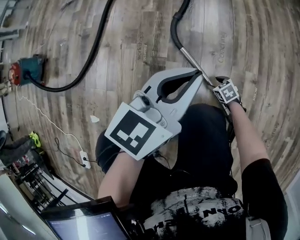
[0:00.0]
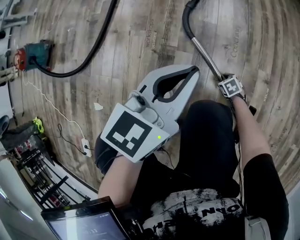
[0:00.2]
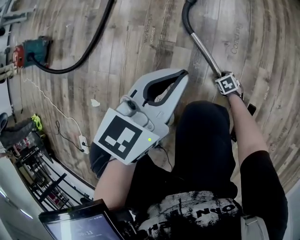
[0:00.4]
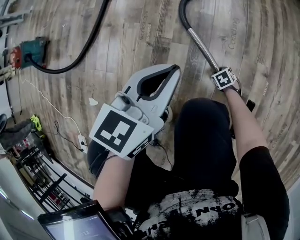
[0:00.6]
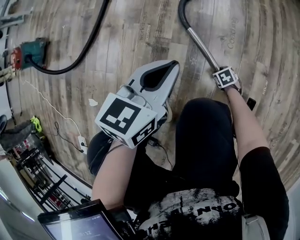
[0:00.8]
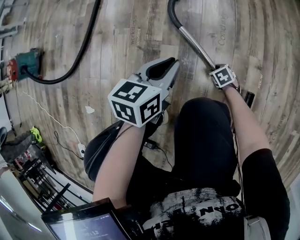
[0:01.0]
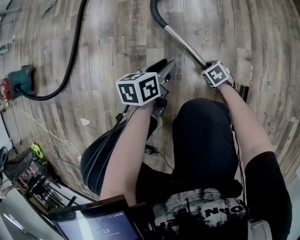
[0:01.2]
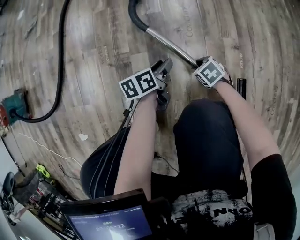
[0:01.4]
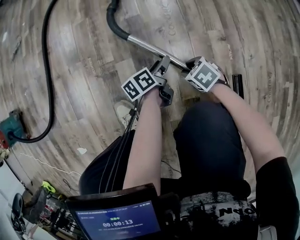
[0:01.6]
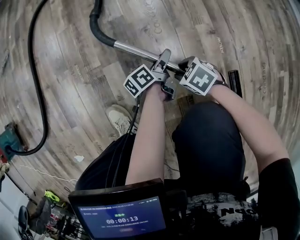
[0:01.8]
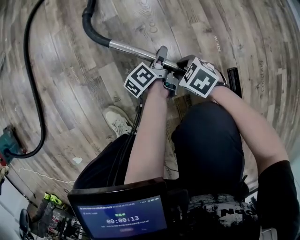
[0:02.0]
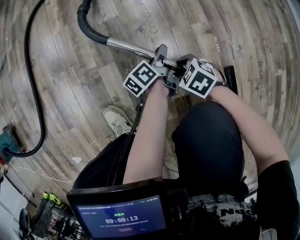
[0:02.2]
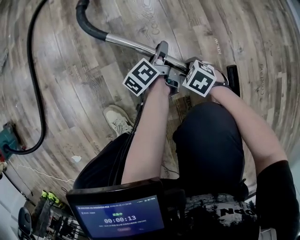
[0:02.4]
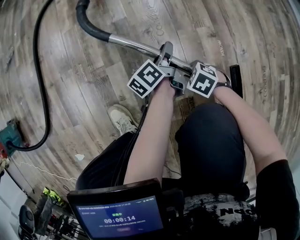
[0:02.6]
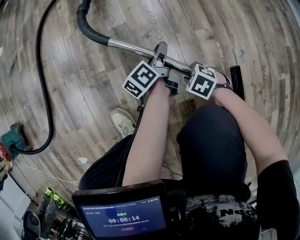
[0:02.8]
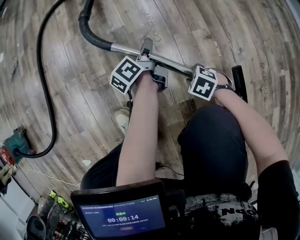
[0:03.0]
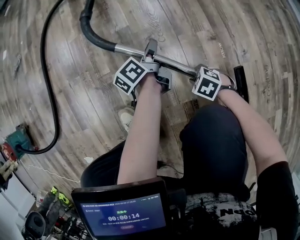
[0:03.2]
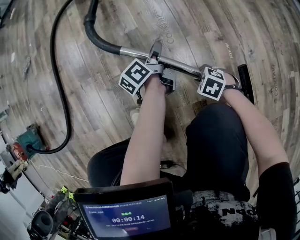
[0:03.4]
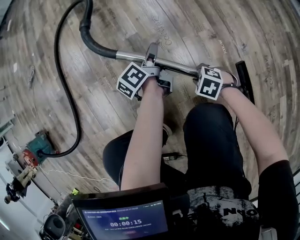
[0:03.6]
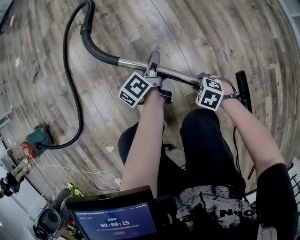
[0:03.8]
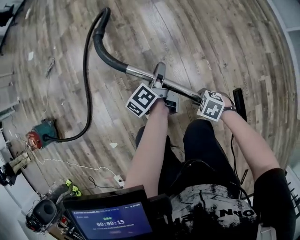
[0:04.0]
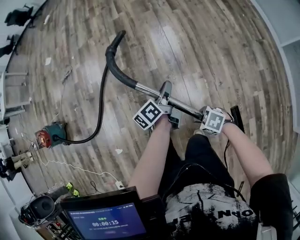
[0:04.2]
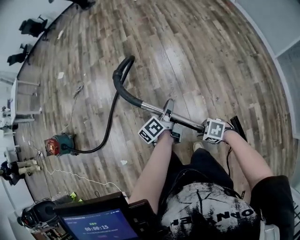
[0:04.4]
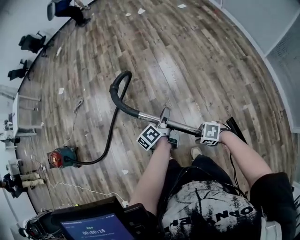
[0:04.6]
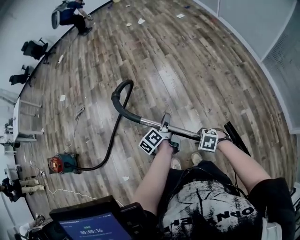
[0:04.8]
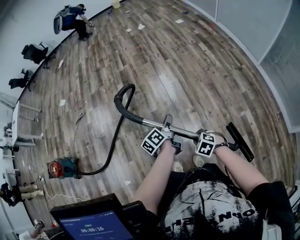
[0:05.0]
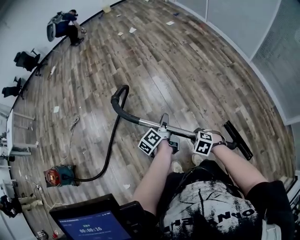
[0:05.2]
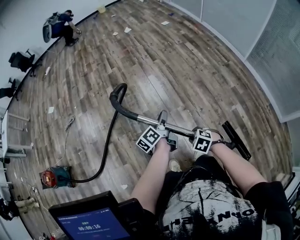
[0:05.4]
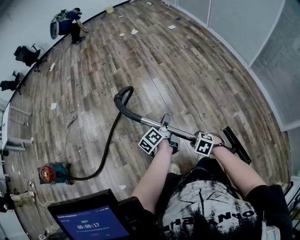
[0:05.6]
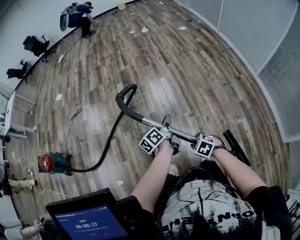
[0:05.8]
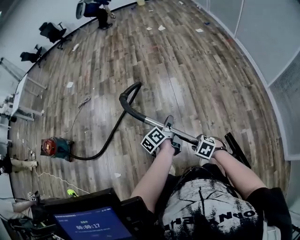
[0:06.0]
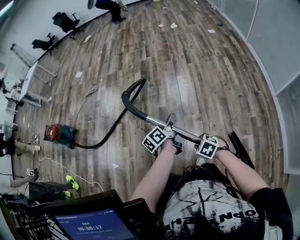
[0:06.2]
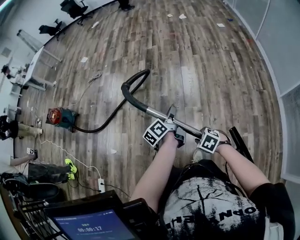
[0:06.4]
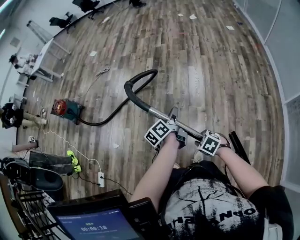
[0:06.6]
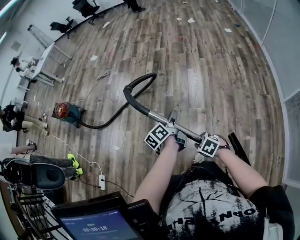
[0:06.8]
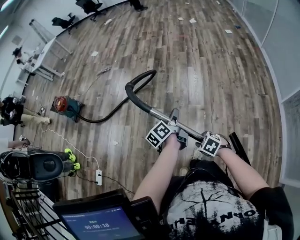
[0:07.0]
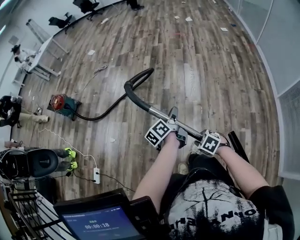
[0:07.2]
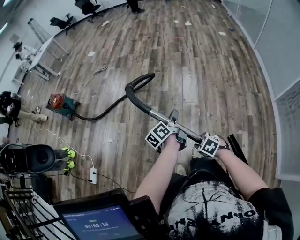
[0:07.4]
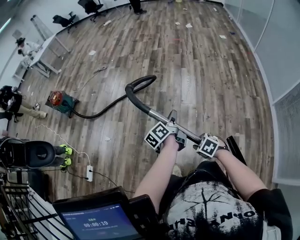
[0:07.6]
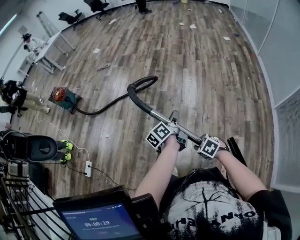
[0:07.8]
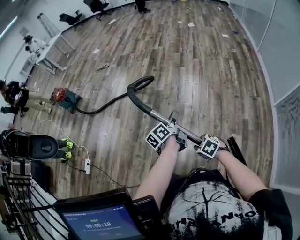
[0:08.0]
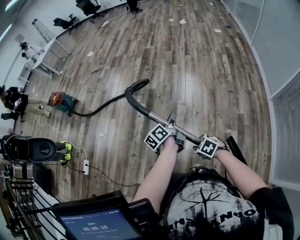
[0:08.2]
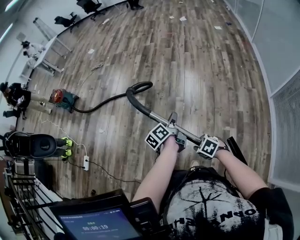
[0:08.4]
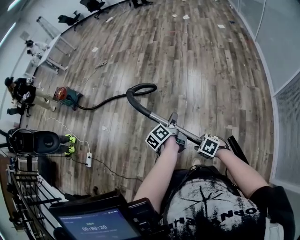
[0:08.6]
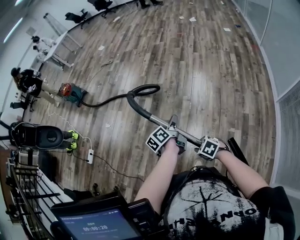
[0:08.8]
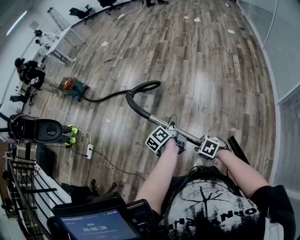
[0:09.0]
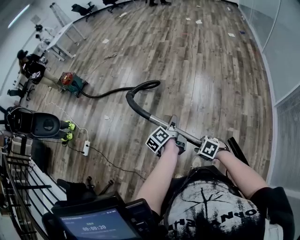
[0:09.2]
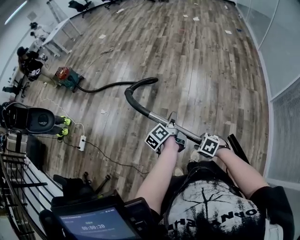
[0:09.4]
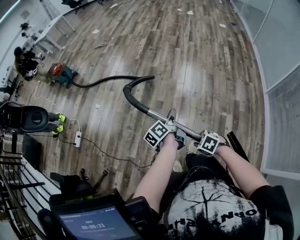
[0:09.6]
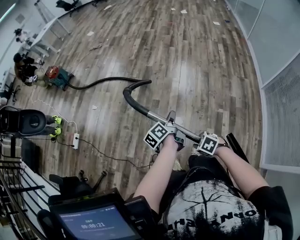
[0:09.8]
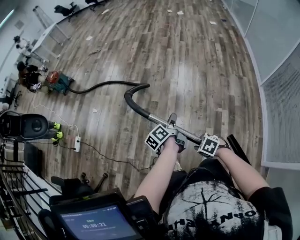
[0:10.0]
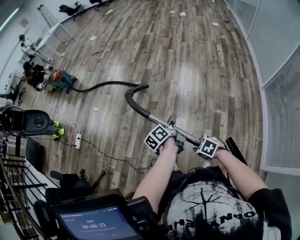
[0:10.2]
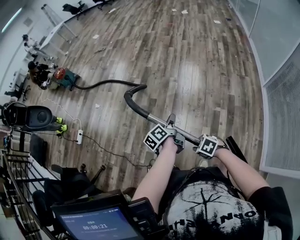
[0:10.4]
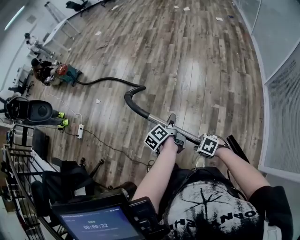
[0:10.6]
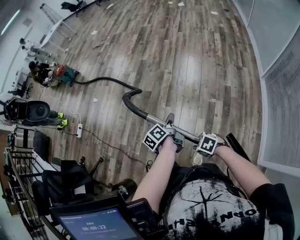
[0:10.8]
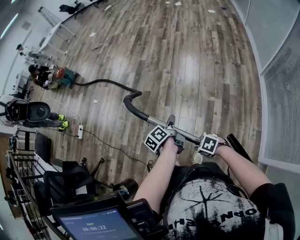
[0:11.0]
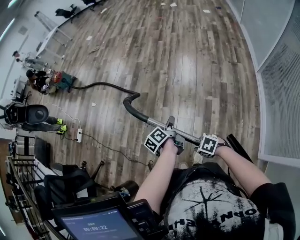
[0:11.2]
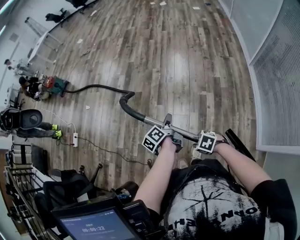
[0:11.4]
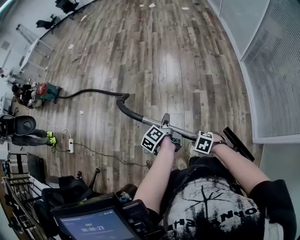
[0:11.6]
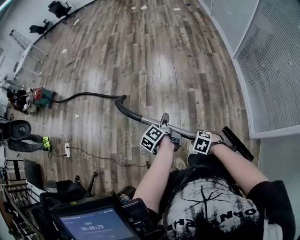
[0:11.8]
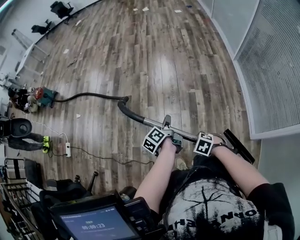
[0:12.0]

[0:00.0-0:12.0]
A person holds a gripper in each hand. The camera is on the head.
0:00.0 to 0:01.6: The left gripper goes approximately 40 cm downward, twists approximately 60 degrees counterclockwise, seen from behind, and opens up. Meanwhile the right gripper goes downward and returns, some 10 cm each way.
0:01.6 to 0:03.0: The left gripper changes place by roughly 10 cm, and closes its fingers. The right gripper shifts by roughly 5 cm.
0:03.0 to 0:04.4: Both grippers travel together upward, about 60 cm. The right gripper swivels roughly 20 degrees.
0:04.4 to 0:06.0: The right gripper travels upward by approximately 5 cm, and rotates approximately 20 degrees. The left gripper moves approximately 10 cm.
0:06.0 to 0:07.6: The two grippers go approximately 25 cm backward.
0:07.6 to 0:09.0: The left gripper shifts some 20 cm backward, while the right gripper shifts approximately 25 cm backward and to the right.
0:09.0 to 0:10.4: Both grippers travel together backward, approximately 25 cm.
0:10.4 to 0:12.0: The right gripper changes place by roughly 20 cm. Meanwhile the left gripper moves roughly 20 cm.

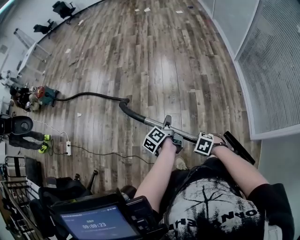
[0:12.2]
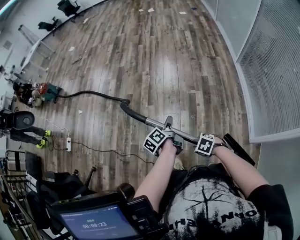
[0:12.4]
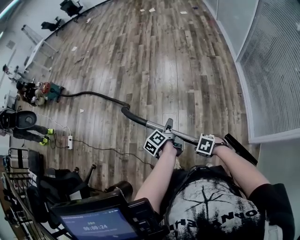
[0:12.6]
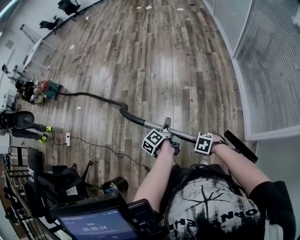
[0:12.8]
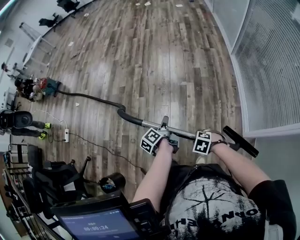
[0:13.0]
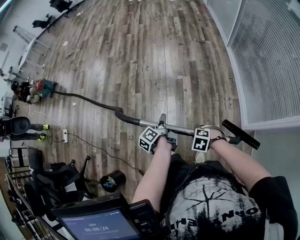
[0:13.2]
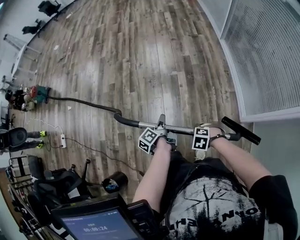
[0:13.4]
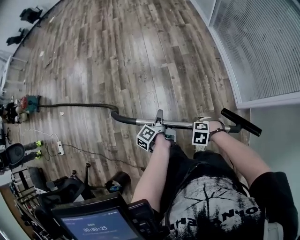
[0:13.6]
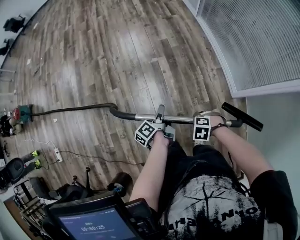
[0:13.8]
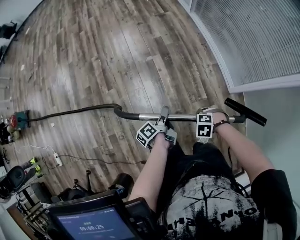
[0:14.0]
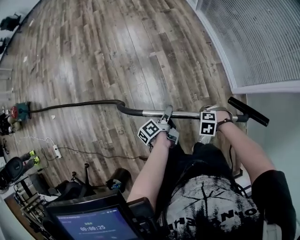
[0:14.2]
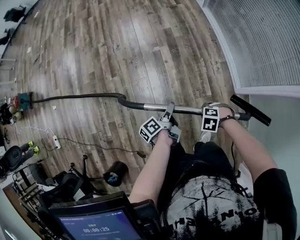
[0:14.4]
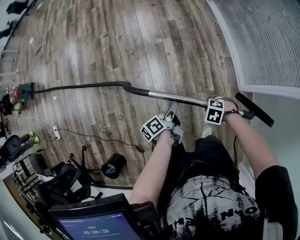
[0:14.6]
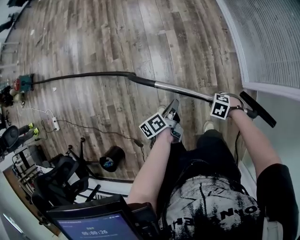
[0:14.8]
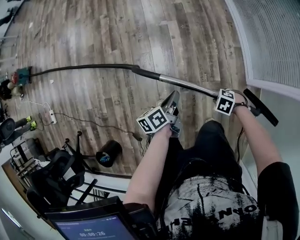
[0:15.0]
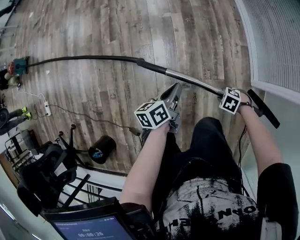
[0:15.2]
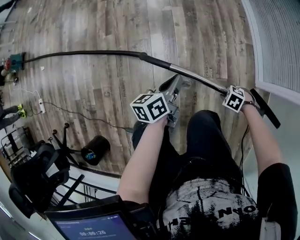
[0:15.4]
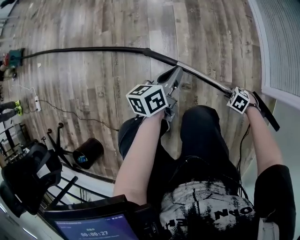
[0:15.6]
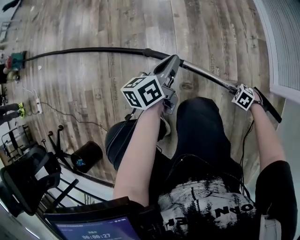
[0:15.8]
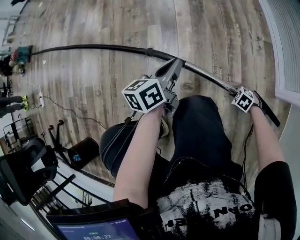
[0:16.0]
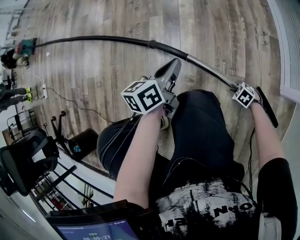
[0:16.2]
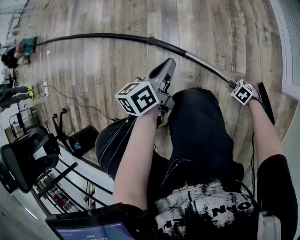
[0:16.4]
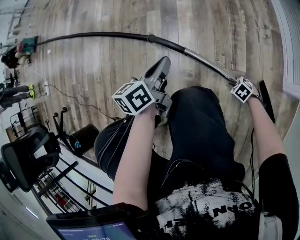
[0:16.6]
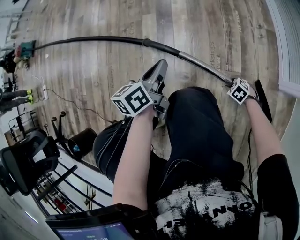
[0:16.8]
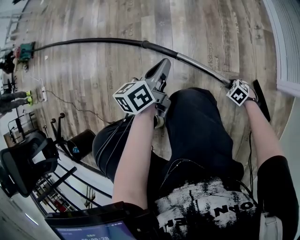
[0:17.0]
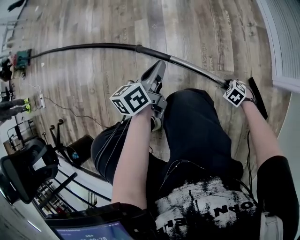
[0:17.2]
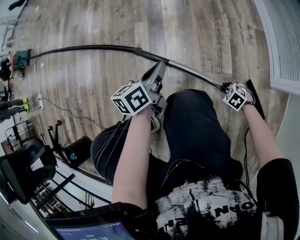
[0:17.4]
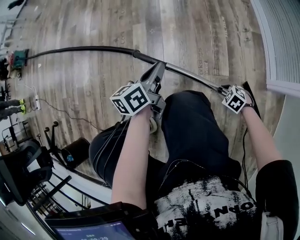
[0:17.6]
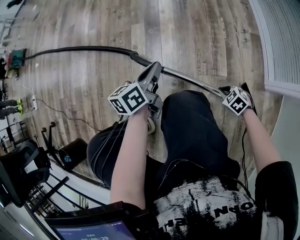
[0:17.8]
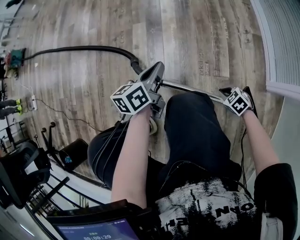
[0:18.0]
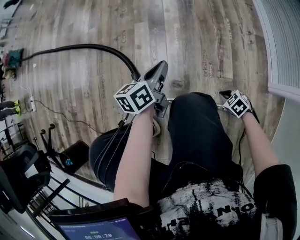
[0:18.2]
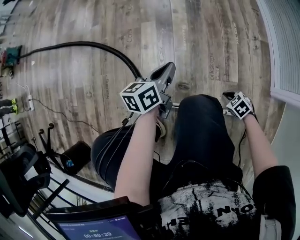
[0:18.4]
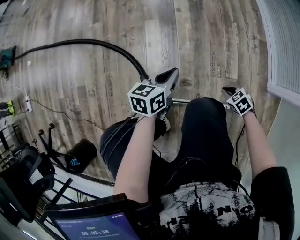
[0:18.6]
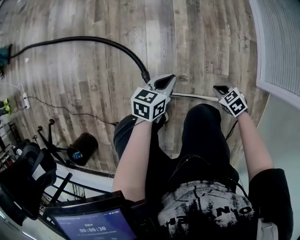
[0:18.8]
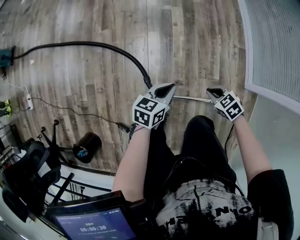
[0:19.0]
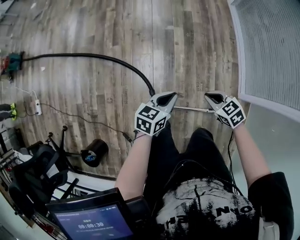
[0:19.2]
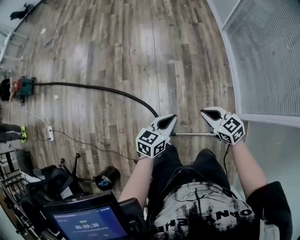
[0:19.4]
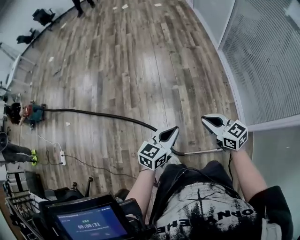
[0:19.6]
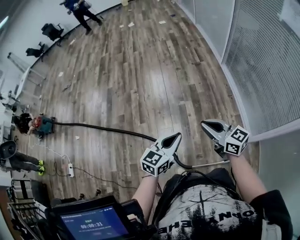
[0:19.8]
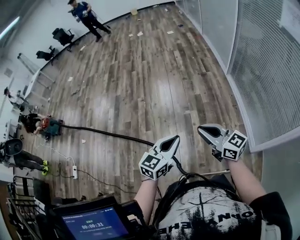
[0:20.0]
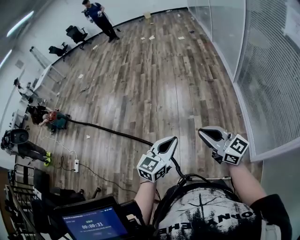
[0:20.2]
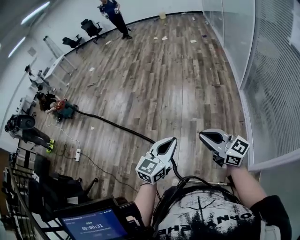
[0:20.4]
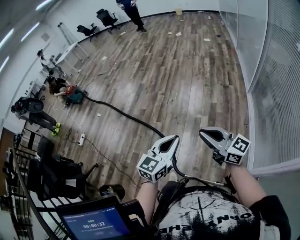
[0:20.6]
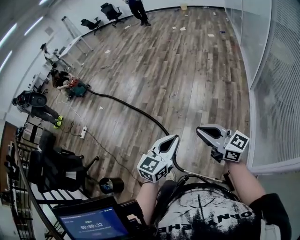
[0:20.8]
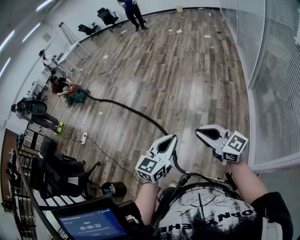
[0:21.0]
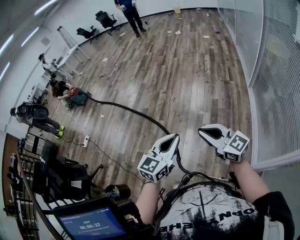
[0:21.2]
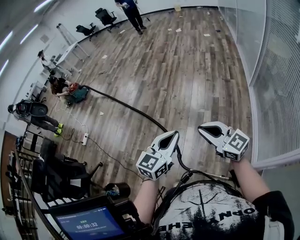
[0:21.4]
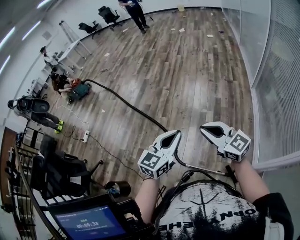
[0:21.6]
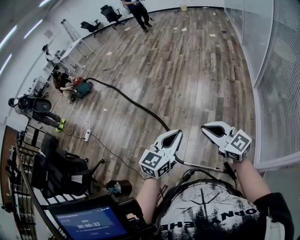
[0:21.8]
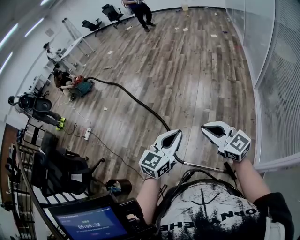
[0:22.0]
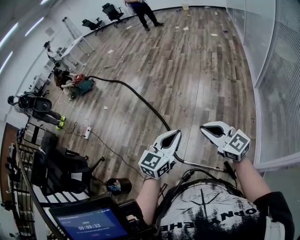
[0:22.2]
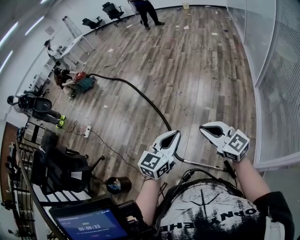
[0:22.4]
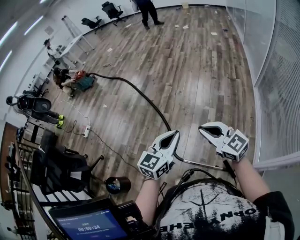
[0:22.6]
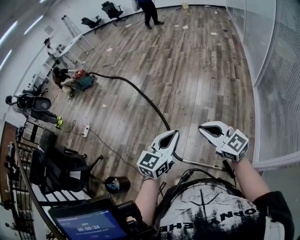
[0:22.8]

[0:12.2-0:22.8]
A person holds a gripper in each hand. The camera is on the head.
0:12.2 to 0:13.8: The right gripper shifts by about 20 cm; the left gripper shifts by approximately 25 cm.
0:13.8 to 0:15.2: The right gripper shifts some 25 cm downward; the left gripper moves downward, approximately 10 cm, turns by about 30 degrees, and closes.
0:15.2 to 0:16.8: The right gripper shifts about 40 cm downward. The left gripper shifts roughly 25 cm downward.
0:16.8 to 0:18.2: The right gripper travels upward by about 5 cm, and closes its fingers.
0:18.2 to 0:19.8: The grippers both shift upward by roughly 70 cm. The right gripper tips its fingers upward by roughly 60 degrees. Meanwhile the left gripper rotates roughly 40 degrees.
0:19.8 to 0:21.2: The left gripper moves some 20 cm, and changes its angle by roughly 30 degrees; the right gripper moves about 15 cm, and rotates approximately 30 degrees.
0:21.2 to 0:22.8: The two grippers go roughly 10 cm to the left.

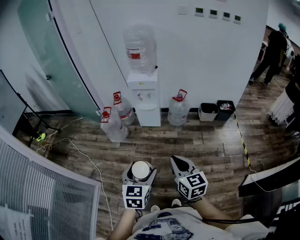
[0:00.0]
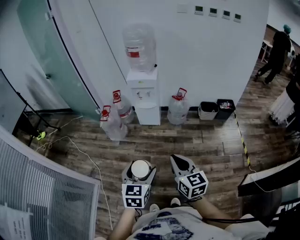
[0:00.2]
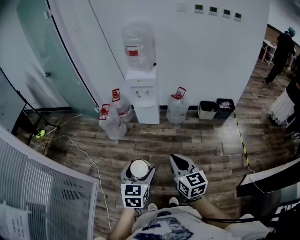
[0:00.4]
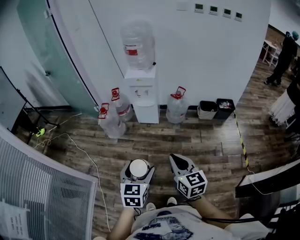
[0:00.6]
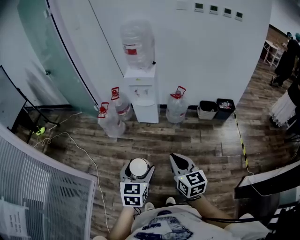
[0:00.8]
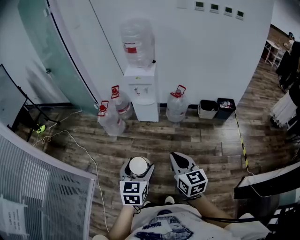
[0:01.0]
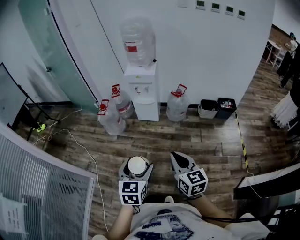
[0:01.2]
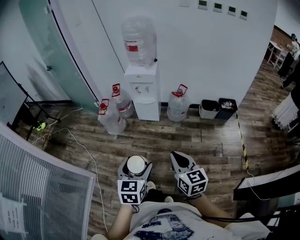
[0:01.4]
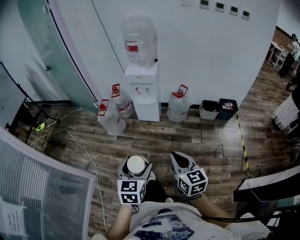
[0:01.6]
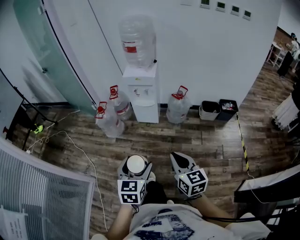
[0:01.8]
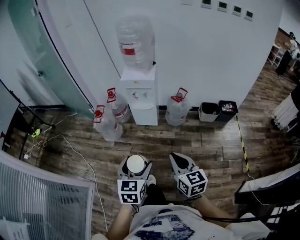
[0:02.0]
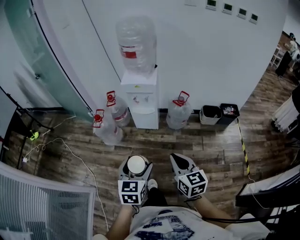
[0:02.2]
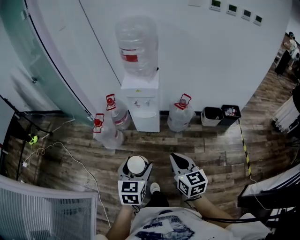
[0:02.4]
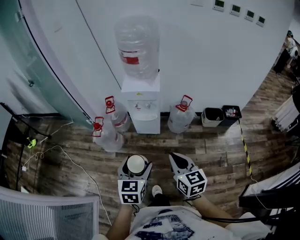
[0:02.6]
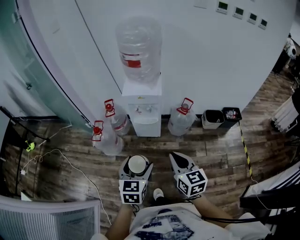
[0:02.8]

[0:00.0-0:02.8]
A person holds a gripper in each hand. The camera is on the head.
0:00.0 to 0:01.4: Both grippers travel together to the right, some 5 cm.
0:01.4 to 0:02.8: Both grippers travel together forward, about 35 cm.
